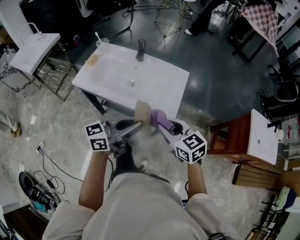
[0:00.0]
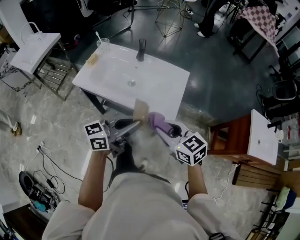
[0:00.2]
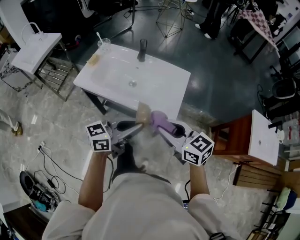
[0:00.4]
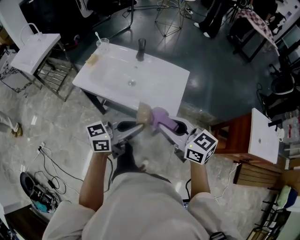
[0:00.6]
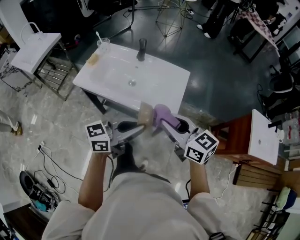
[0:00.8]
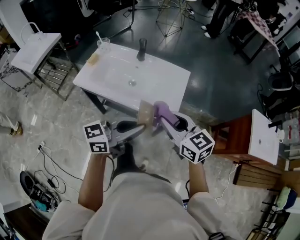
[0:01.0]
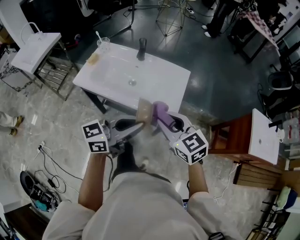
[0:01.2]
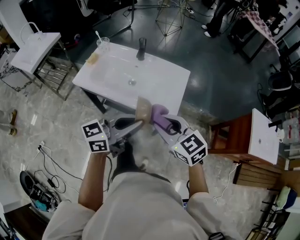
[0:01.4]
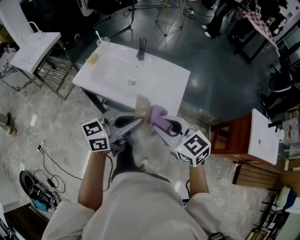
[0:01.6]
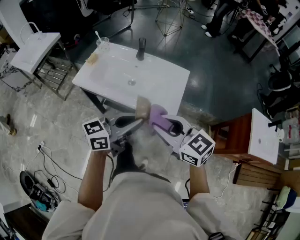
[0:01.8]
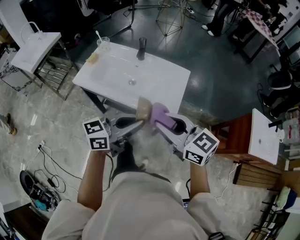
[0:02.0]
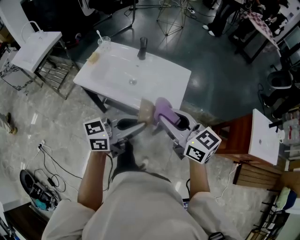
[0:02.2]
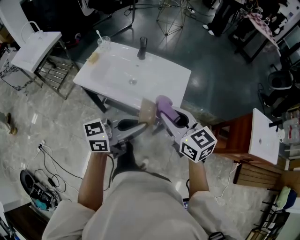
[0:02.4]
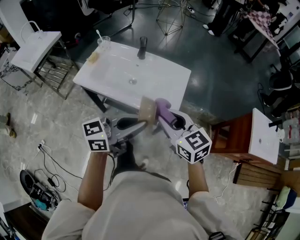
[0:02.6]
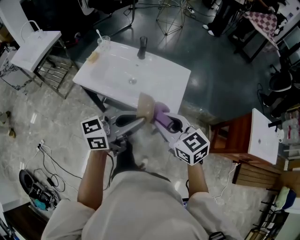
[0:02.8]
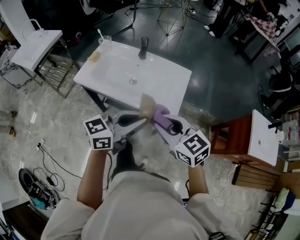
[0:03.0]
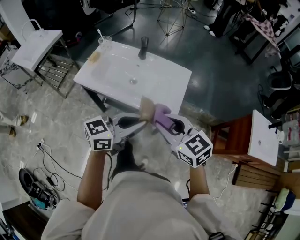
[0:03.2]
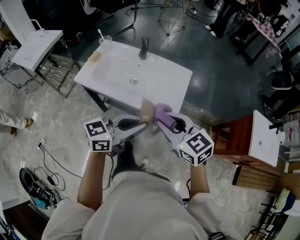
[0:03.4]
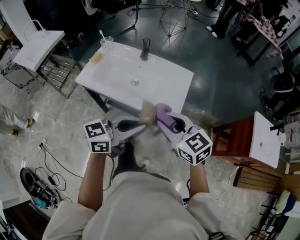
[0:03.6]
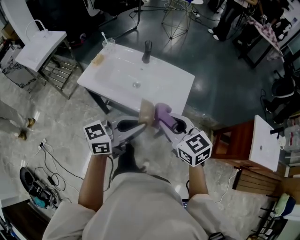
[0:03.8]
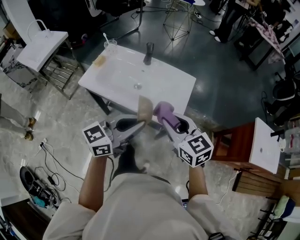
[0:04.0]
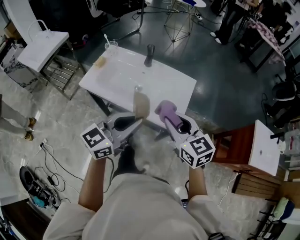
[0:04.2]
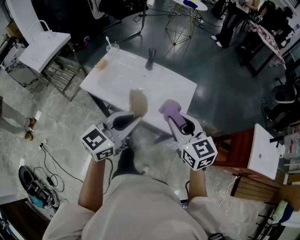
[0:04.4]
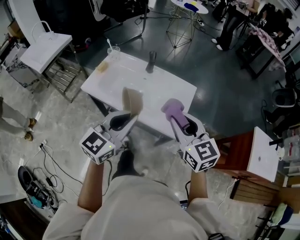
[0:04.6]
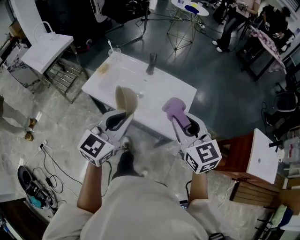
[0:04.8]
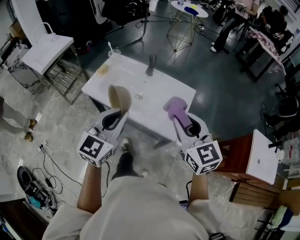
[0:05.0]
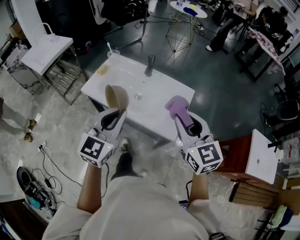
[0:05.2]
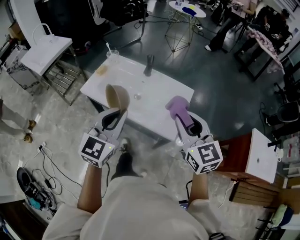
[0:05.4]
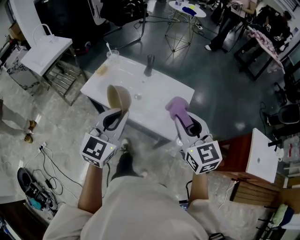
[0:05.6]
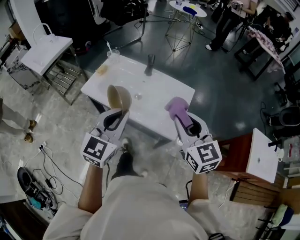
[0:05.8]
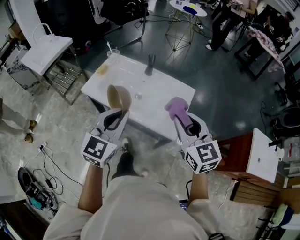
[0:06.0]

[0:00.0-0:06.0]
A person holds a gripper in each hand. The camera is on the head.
0:00.0 to 0:01.6: The right gripper changes place by about 5 cm.
0:01.6 to 0:03.0: The grippers make only small movements.
0:03.0 to 0:04.4: The right gripper heads forward, covering some 10 cm. Meanwhile the left gripper shifts by approximately 5 cm, and swivels some 20 degrees.
0:04.4 to 0:06.0: The left gripper rotates about 30 degrees. Meanwhile the right gripper ends up some 5 cm from where it was.

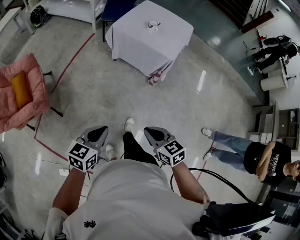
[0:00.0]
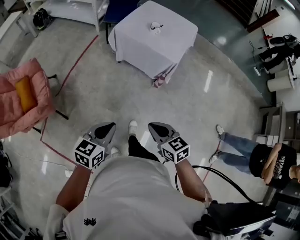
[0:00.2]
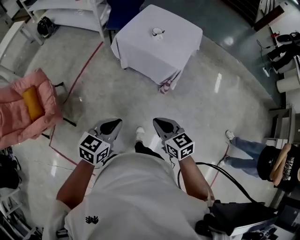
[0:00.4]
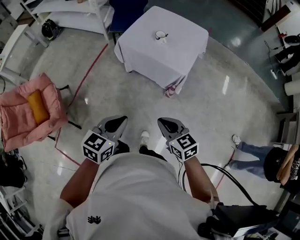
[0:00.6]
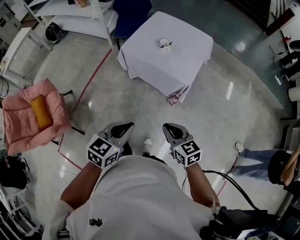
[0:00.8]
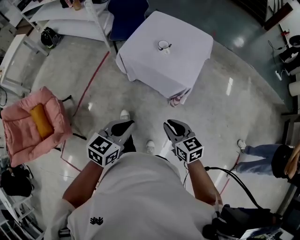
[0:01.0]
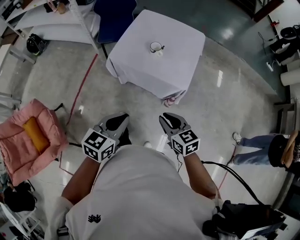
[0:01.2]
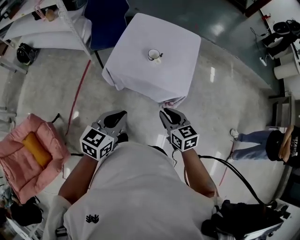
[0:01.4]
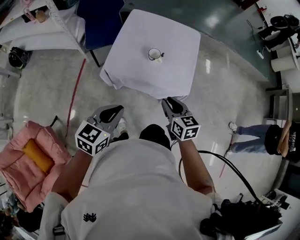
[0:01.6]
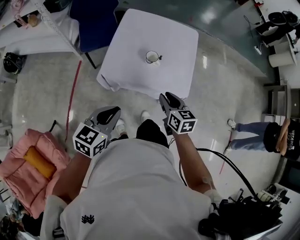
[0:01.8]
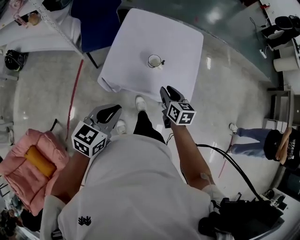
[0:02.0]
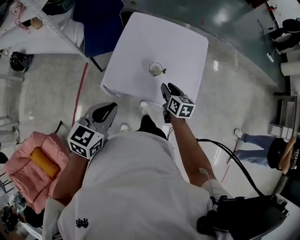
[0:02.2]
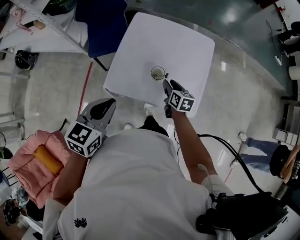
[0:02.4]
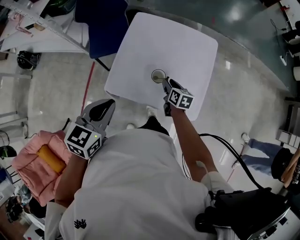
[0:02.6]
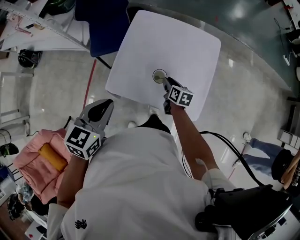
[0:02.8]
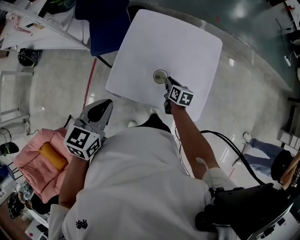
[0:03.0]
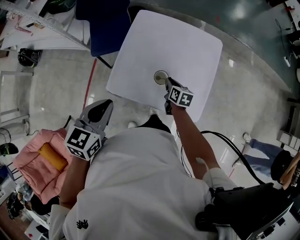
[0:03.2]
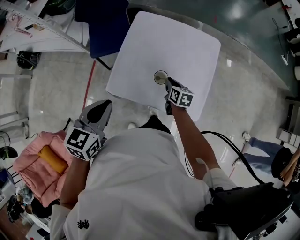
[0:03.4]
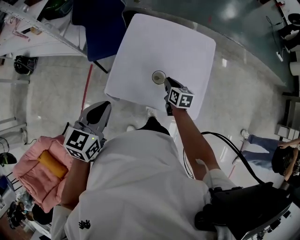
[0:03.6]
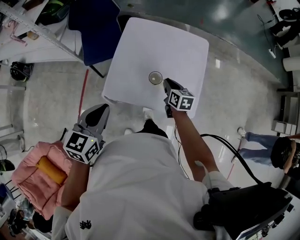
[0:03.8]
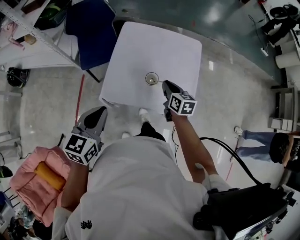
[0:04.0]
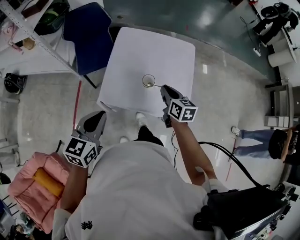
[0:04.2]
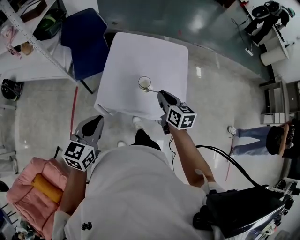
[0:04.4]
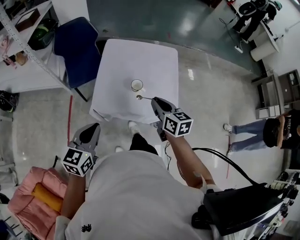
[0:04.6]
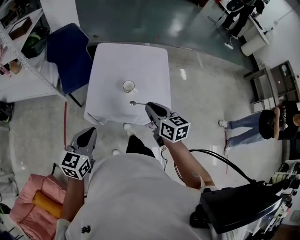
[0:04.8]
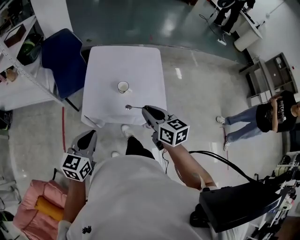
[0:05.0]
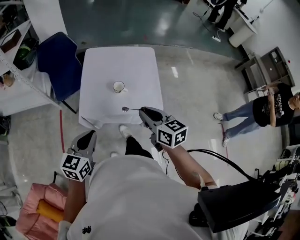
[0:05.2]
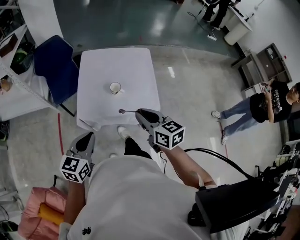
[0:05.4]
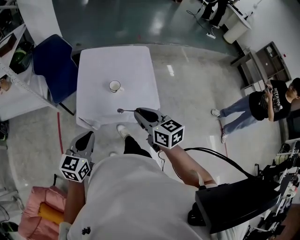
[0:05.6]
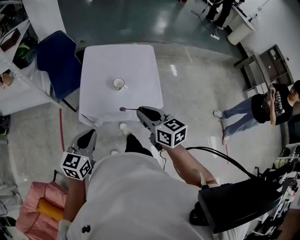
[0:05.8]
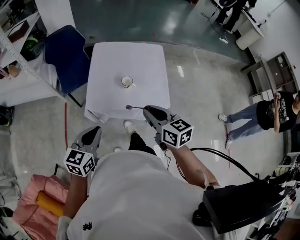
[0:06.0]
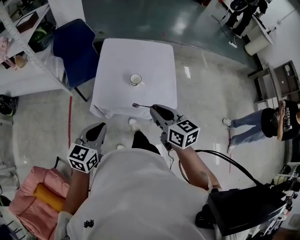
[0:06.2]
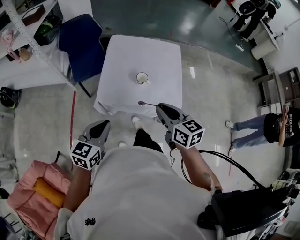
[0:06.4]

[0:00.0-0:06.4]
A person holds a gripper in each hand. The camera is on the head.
0:00.0 to 0:01.6: The two grippers travel together, forward, some 60 cm. The right gripper changes its angle by approximately 30 degrees, and opens its fingers.
0:01.6 to 0:03.2: The left gripper travels forward by some 25 cm. Meanwhile the right gripper moves forward and downward, about 35 cm, and changes its angle by roughly 30 degrees.
0:03.2 to 0:04.8: The right gripper heads upward and backward, covering about 35 cm, and swivels roughly 20 degrees; the left gripper travels backward by some 15 cm.
0:04.8 to 0:06.4: The right gripper shifts some 5 cm backward.

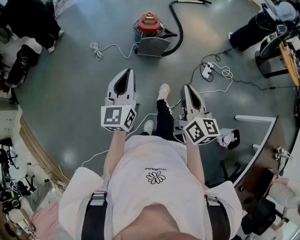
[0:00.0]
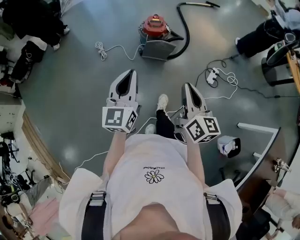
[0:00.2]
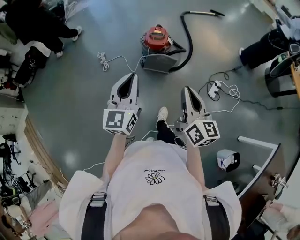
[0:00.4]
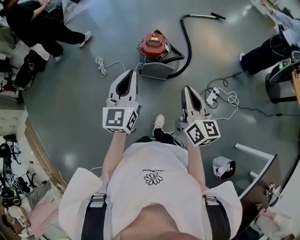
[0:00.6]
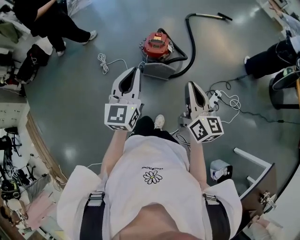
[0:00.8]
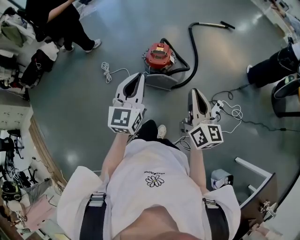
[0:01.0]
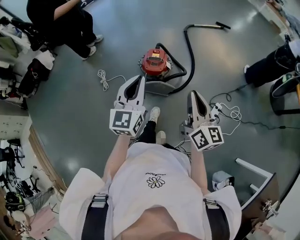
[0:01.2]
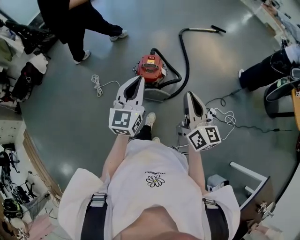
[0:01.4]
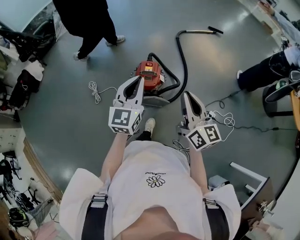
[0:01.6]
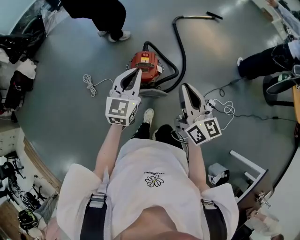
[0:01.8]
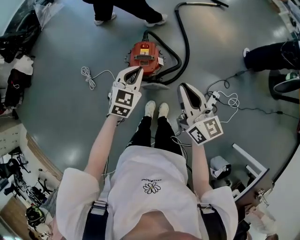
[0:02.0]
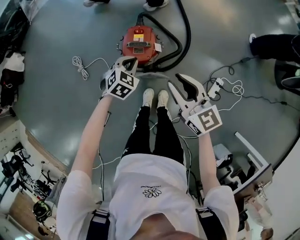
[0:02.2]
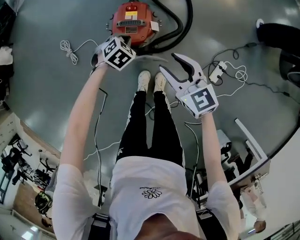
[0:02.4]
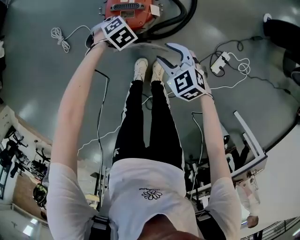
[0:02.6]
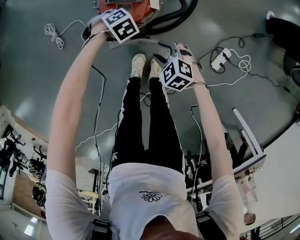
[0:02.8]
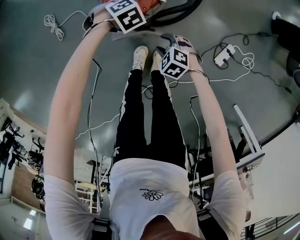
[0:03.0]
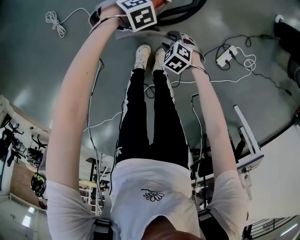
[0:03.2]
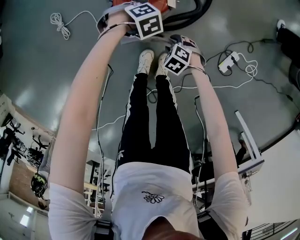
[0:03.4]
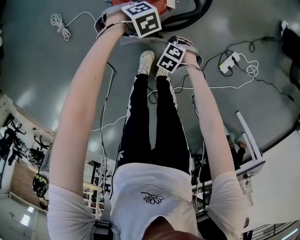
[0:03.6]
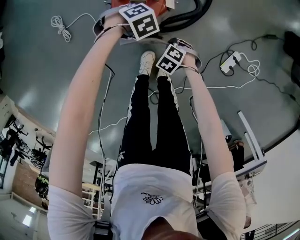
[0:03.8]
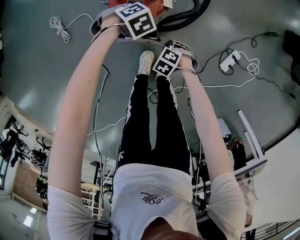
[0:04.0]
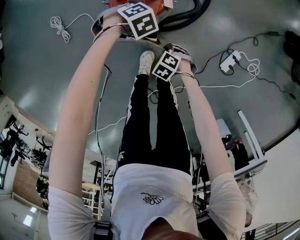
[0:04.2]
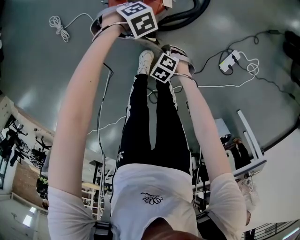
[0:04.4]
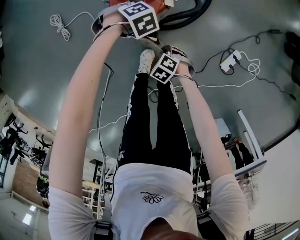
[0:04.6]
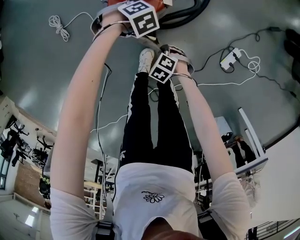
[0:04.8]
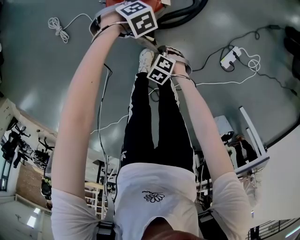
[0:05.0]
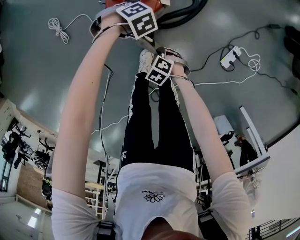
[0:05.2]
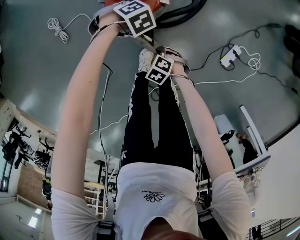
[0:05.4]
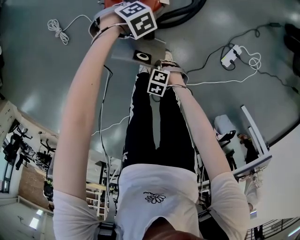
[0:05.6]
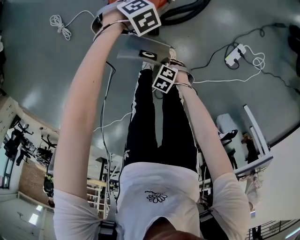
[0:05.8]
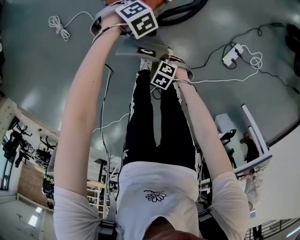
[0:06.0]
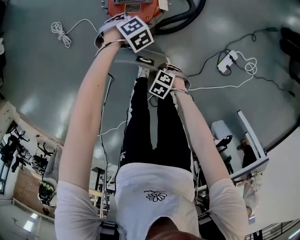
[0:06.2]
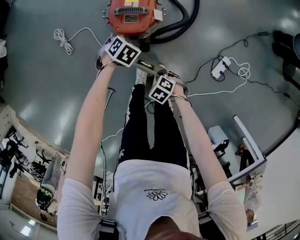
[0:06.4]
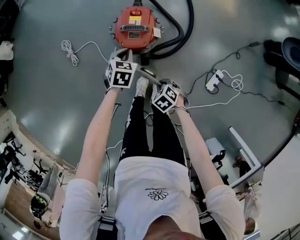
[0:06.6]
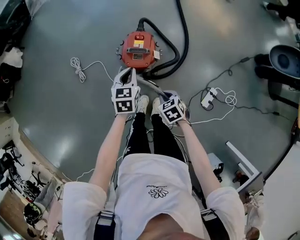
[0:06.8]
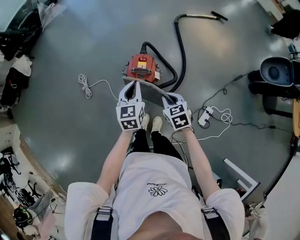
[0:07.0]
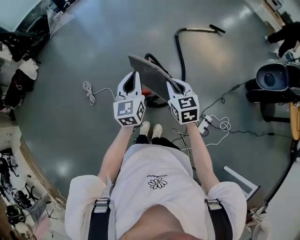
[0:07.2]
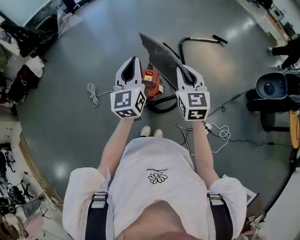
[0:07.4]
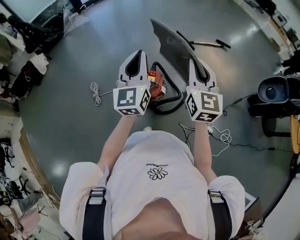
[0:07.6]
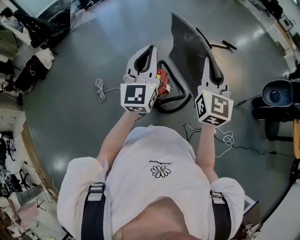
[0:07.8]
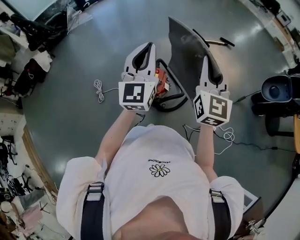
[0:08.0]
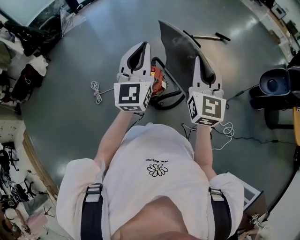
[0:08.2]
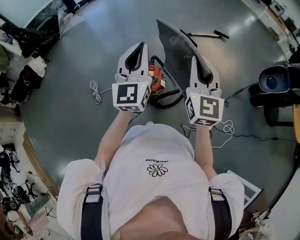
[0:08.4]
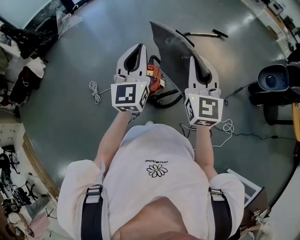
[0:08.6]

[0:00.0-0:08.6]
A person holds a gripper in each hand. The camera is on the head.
0:00.0 to 0:01.4: Both grippers are carried forward, roughly 40 cm.
0:01.4 to 0:02.8: Both grippers travel together downward, roughly 60 cm. The right gripper angles its fingers downward, by roughly 60 degrees, and opens; the left gripper points its fingers some 80 degrees further downward.
0:02.8 to 0:04.4: The right gripper heads downward, covering about 10 cm, turns by approximately 20 degrees, and closes its fingers.
0:04.4 to 0:05.8: The right gripper changes place by approximately 10 cm.
0:05.8 to 0:07.2: Both grippers move upward, roughly 60 cm. The left gripper tips its fingers upward by roughly 80 degrees. The right gripper tilts its fingers about 50 degrees upward.
0:07.2 to 0:08.6: The two grippers go about 20 cm upward. The right gripper tips its fingers upward by some 30 degrees, while the left gripper changes its angle by approximately 20 degrees.

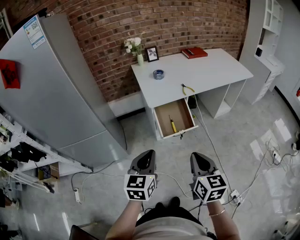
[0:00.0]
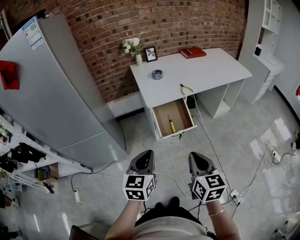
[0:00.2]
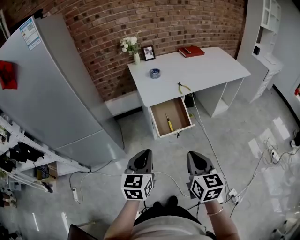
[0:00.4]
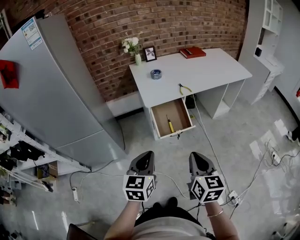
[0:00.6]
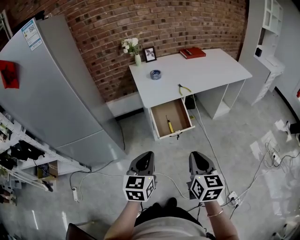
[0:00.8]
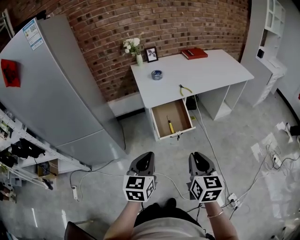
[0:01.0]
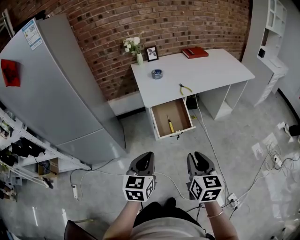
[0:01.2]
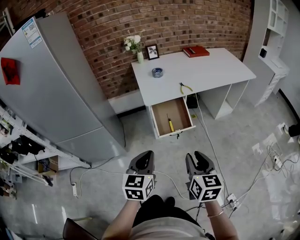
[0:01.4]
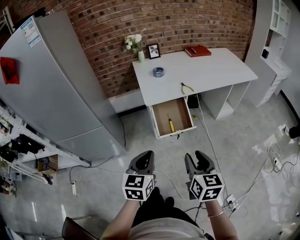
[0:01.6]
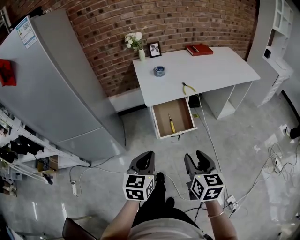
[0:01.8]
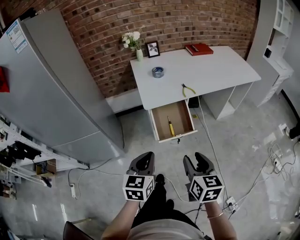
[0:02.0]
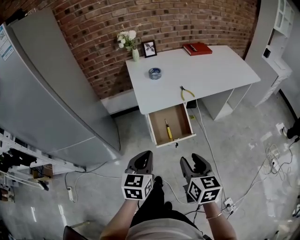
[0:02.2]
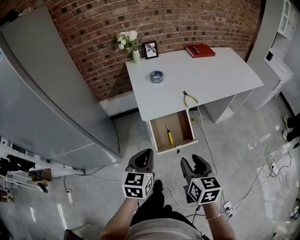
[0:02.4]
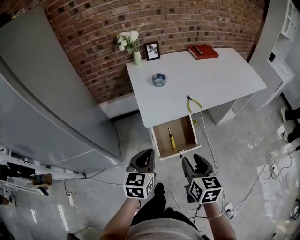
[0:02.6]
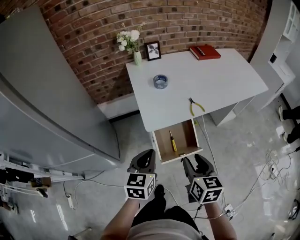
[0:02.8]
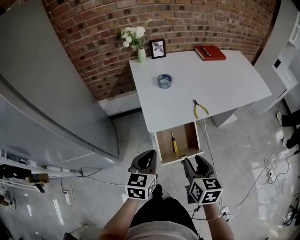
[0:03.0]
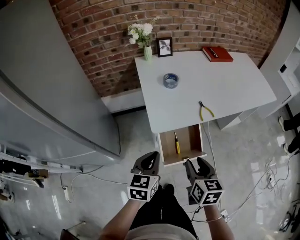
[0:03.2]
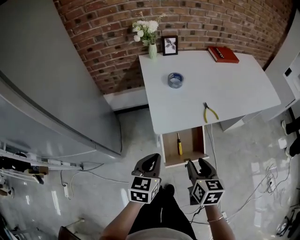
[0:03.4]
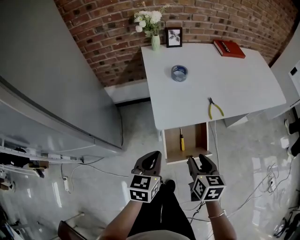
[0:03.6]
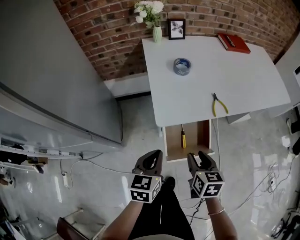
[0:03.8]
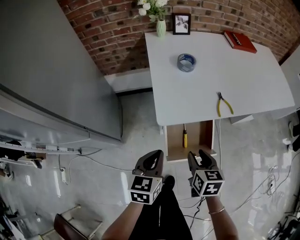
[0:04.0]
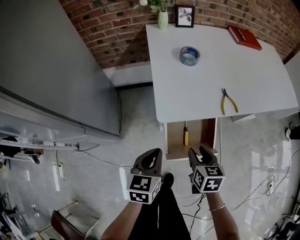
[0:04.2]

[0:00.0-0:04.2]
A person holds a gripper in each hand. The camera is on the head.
0:00.0 to 0:01.4: The right gripper ends up approximately 5 cm from where it was, and opens.
0:01.4 to 0:02.8: The grippers both shift forward by some 25 cm.
0:02.8 to 0:04.2: The left gripper travels downward by some 15 cm, while the right gripper moves downward and forward, roughly 20 cm.
